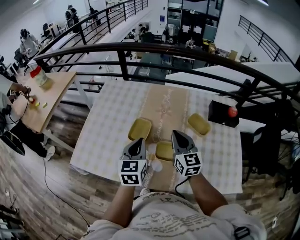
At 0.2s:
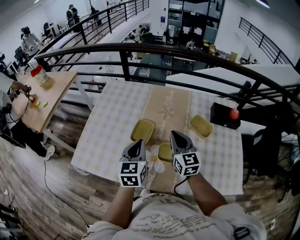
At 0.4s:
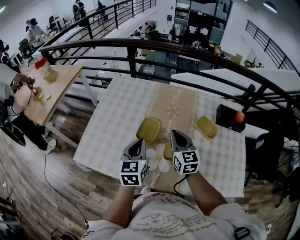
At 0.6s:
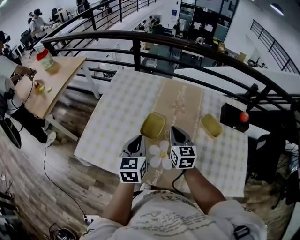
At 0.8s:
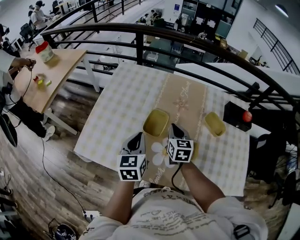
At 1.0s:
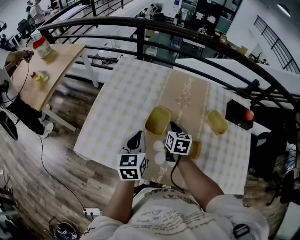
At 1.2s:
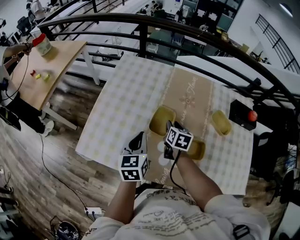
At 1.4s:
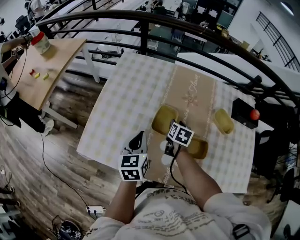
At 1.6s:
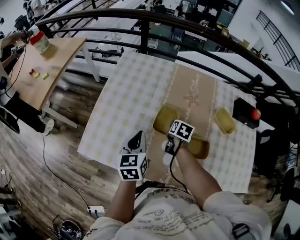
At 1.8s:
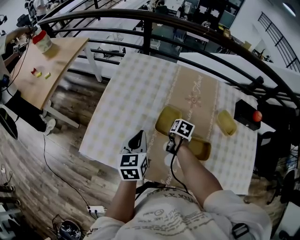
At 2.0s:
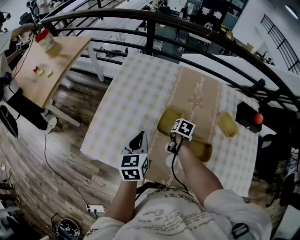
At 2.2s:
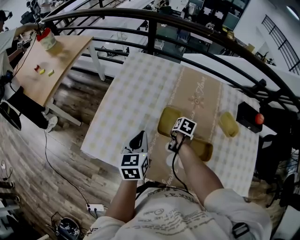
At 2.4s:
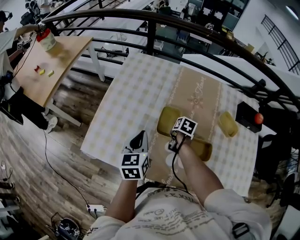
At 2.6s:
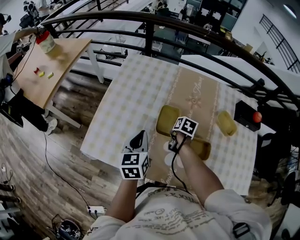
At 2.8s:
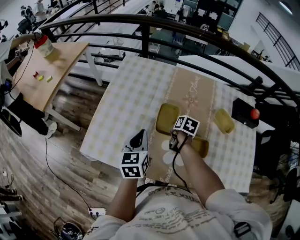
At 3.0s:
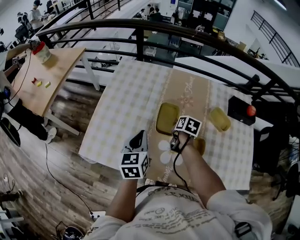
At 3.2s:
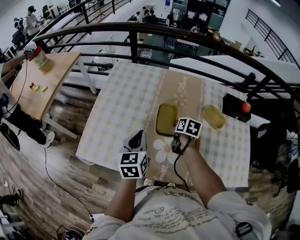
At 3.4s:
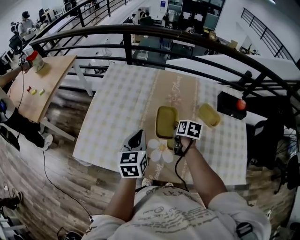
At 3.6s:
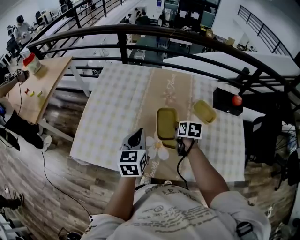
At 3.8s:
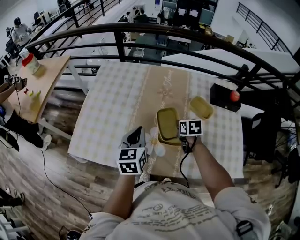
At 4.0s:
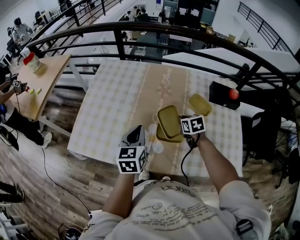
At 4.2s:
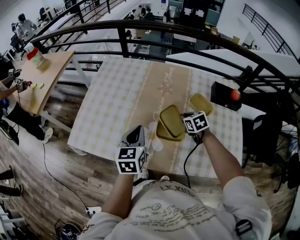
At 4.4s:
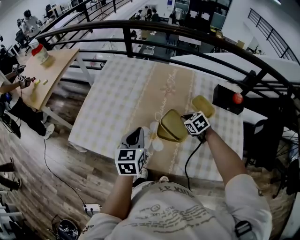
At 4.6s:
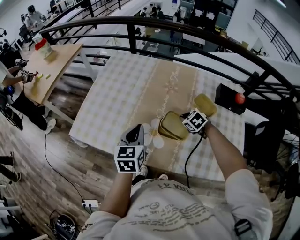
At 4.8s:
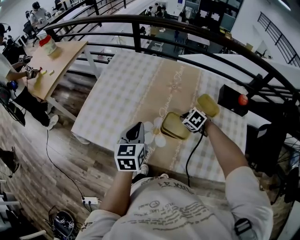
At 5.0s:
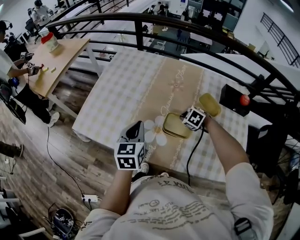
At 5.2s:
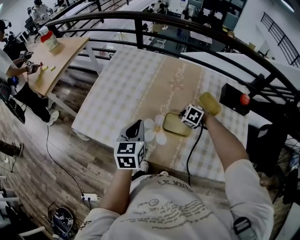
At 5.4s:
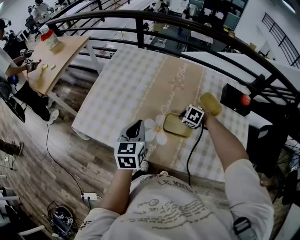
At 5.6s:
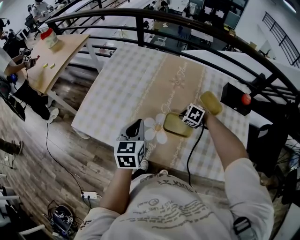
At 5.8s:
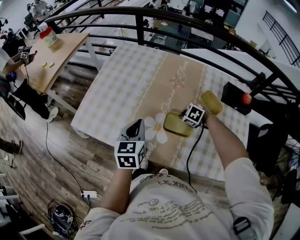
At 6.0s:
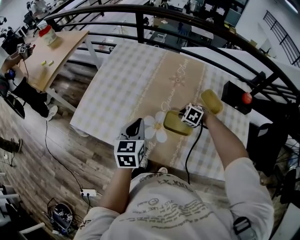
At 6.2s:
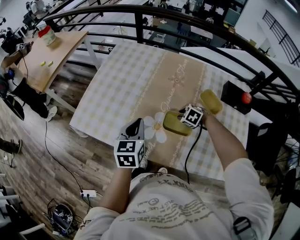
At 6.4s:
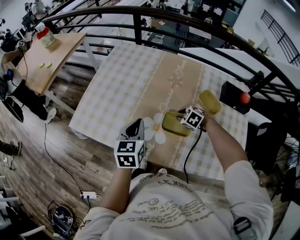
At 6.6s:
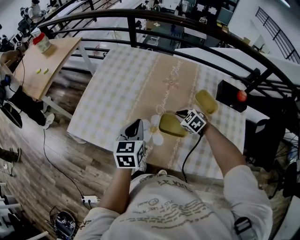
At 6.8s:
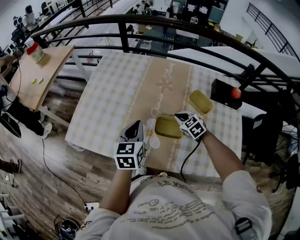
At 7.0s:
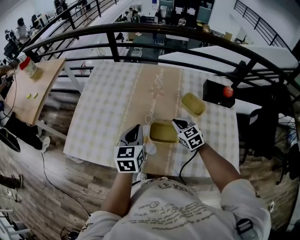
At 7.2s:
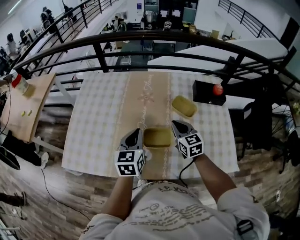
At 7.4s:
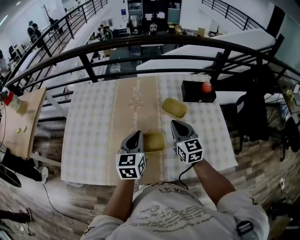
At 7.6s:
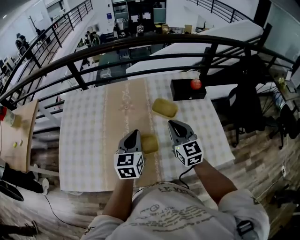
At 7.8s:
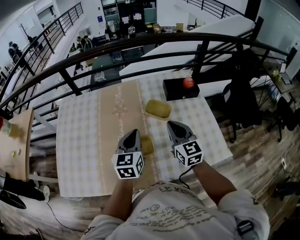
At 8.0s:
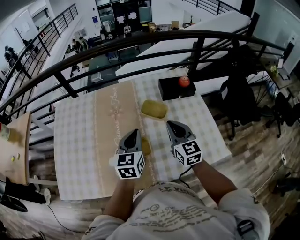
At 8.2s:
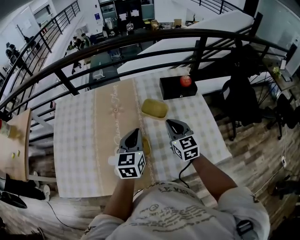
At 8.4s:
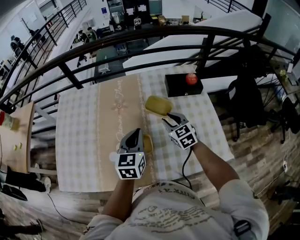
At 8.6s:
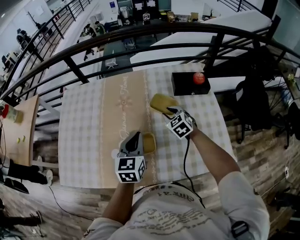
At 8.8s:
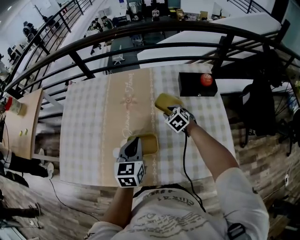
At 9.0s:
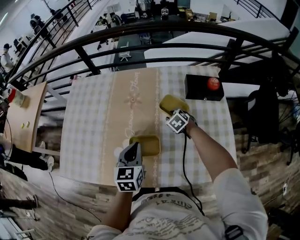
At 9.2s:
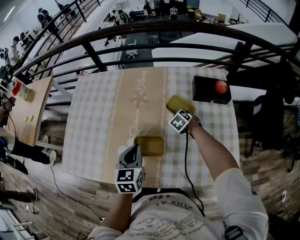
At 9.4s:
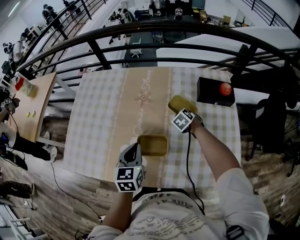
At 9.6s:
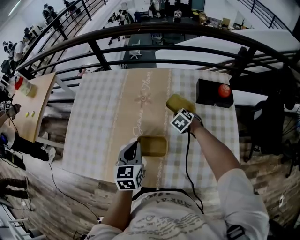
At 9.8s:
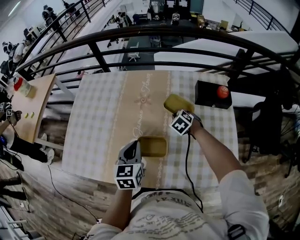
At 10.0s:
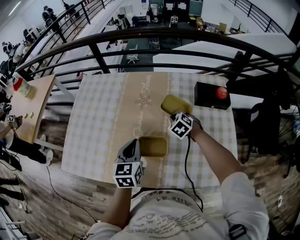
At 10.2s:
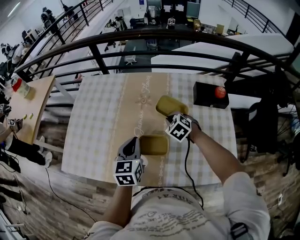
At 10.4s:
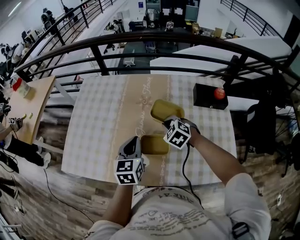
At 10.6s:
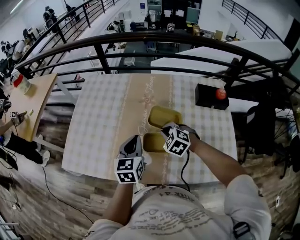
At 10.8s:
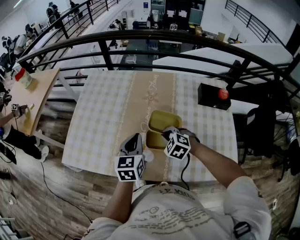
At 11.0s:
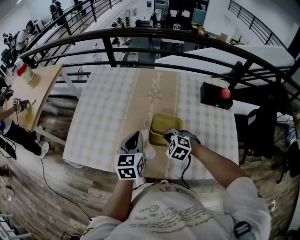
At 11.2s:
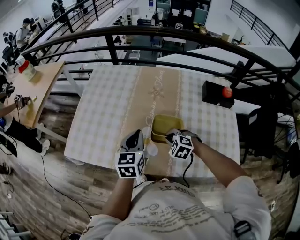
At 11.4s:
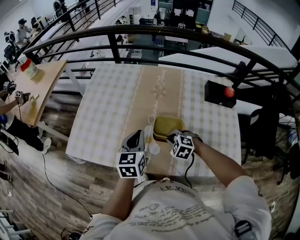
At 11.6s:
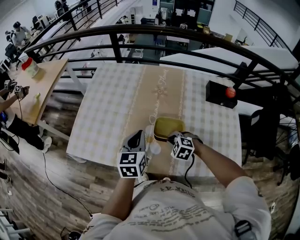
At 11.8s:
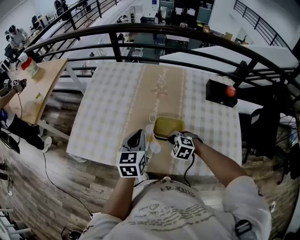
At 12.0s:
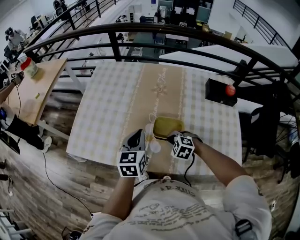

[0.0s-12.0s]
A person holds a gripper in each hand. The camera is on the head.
0.0s to 1.6s: The right gripper goes approximately 30 cm downward, forward and to the left, angles its fingers downward, by some 50 degrees, and opens. Meanwhile the left gripper travels to the left and downward by approximately 20 cm.
1.6s to 3.0s: The right gripper is displaced upward by approximately 5 cm, and closes up.
3.0s to 4.4s: Both grippers move to the right and backward, some 15 cm. The right gripper twists some 60 degrees counterclockwise, seen from behind.
4.4s to 6.0s: The right gripper shifts about 5 cm downward, and turns by roughly 30 degrees.
6.0s to 7.6s: The left gripper moves some 20 cm, and turns by about 30 degrees. Meanwhile the right gripper travels upward by some 25 cm, and angles its fingers upward, by approximately 60 degrees.
7.6s to 9.0s: The right gripper is displaced downward and forward by roughly 30 cm, tilts its fingers approximately 50 degrees downward, and opens. Meanwhile the left gripper travels downward by about 5 cm.
9.0s to 10.4s: The left gripper heads to the left, covering about 5 cm. Meanwhile the right gripper goes about 20 cm to the left, upward and backward, turns by approximately 20 degrees, and closes.
10.4s to 12.0s: The right gripper heads backward, to the left and downward, covering approximately 20 cm, while the left gripper is displaced to the left by about 10 cm.

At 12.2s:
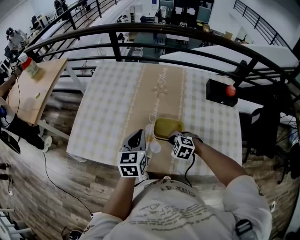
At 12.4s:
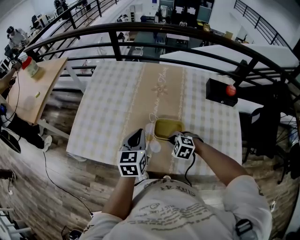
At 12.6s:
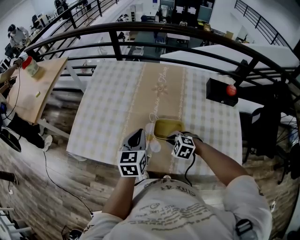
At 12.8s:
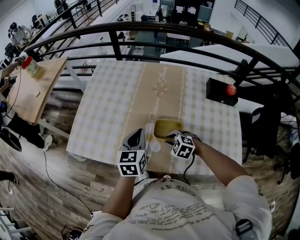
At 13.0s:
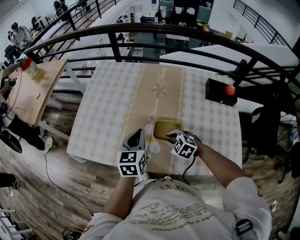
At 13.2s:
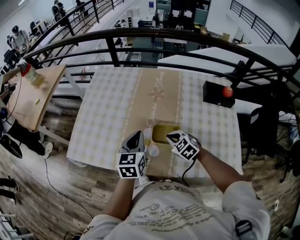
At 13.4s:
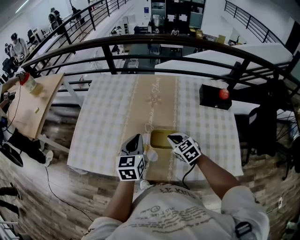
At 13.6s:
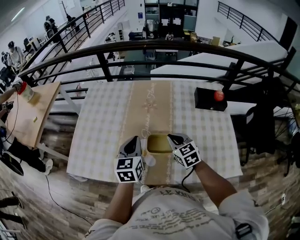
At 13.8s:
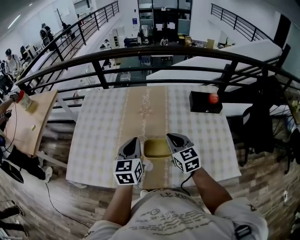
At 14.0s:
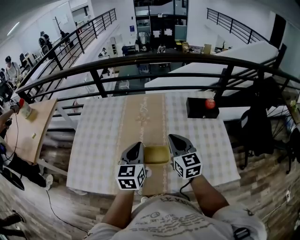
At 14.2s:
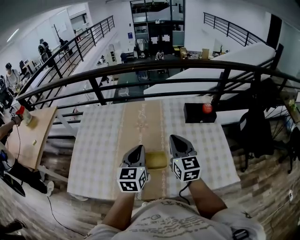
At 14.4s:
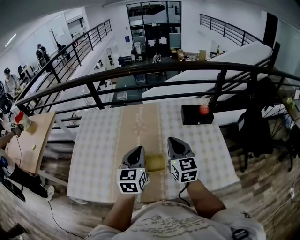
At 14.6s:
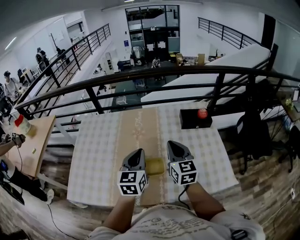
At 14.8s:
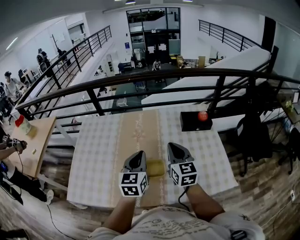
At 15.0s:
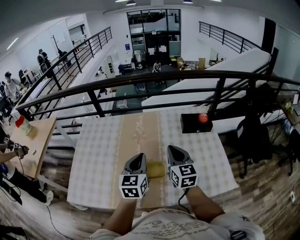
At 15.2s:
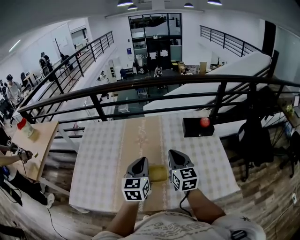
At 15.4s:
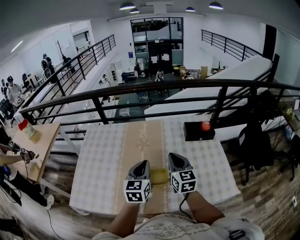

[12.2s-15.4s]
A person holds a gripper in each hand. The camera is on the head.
12.2s to 13.8s: The right gripper goes roughly 20 cm upward and to the right, and angles its fingers upward, by some 40 degrees; the left gripper heads to the right and upward, covering some 10 cm.
13.8s to 15.4s: The right gripper goes some 10 cm upward. The left gripper goes some 5 cm to the right.

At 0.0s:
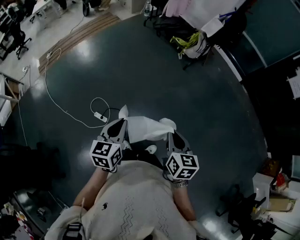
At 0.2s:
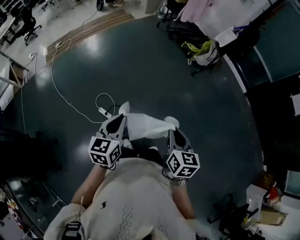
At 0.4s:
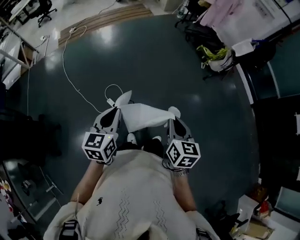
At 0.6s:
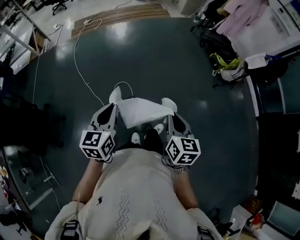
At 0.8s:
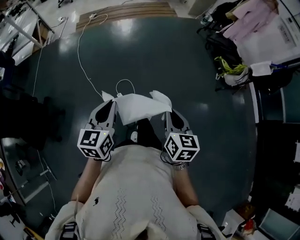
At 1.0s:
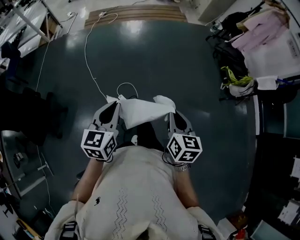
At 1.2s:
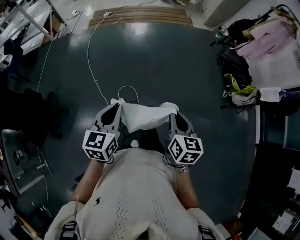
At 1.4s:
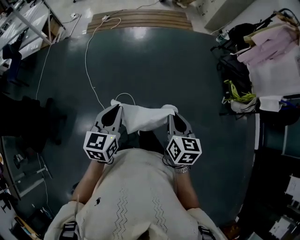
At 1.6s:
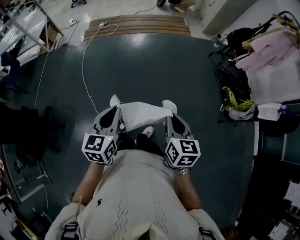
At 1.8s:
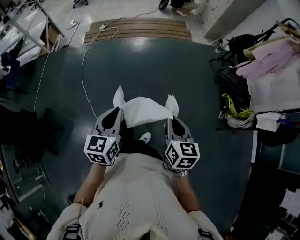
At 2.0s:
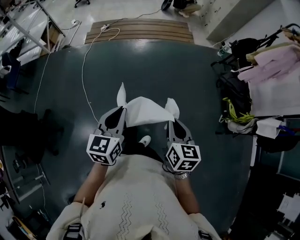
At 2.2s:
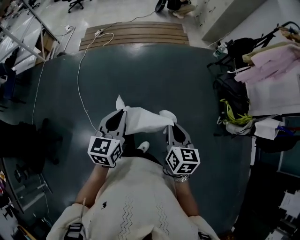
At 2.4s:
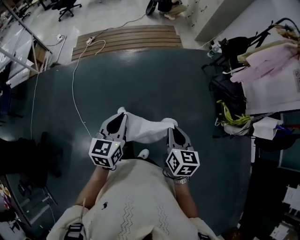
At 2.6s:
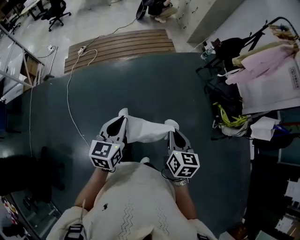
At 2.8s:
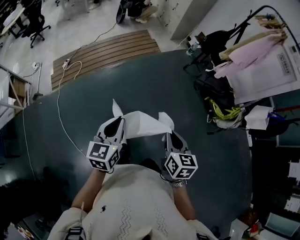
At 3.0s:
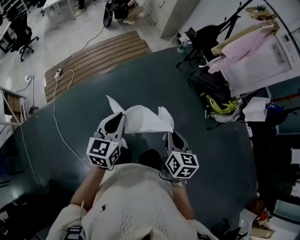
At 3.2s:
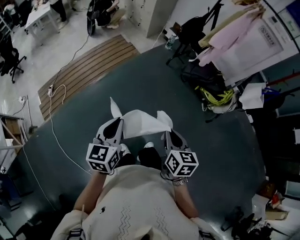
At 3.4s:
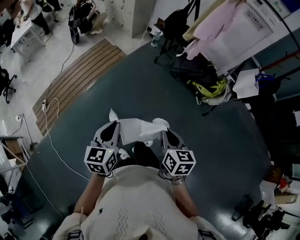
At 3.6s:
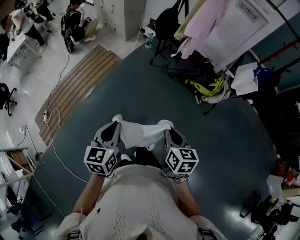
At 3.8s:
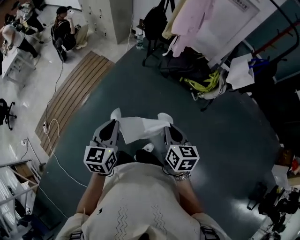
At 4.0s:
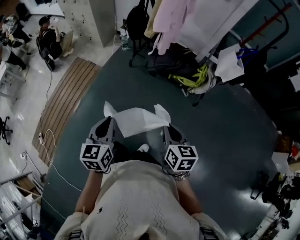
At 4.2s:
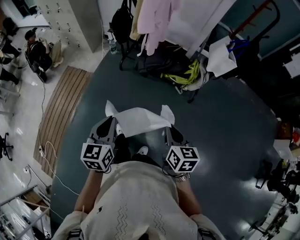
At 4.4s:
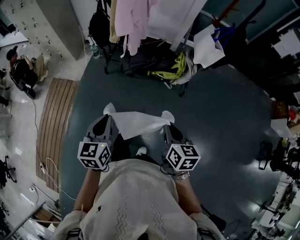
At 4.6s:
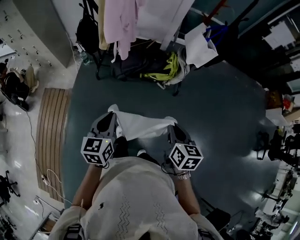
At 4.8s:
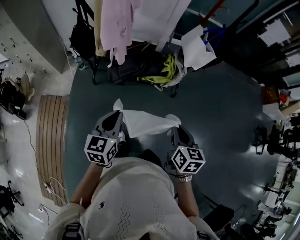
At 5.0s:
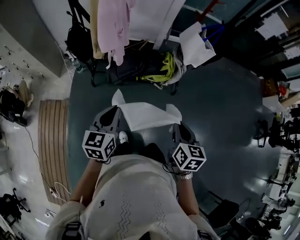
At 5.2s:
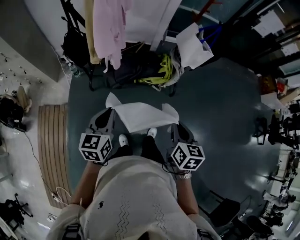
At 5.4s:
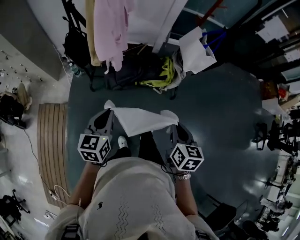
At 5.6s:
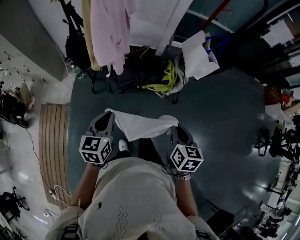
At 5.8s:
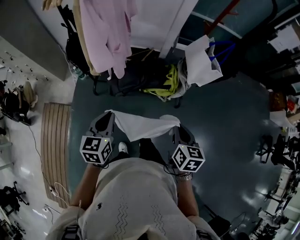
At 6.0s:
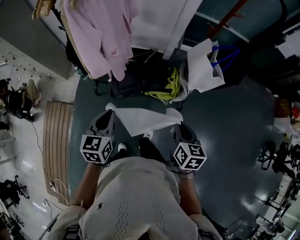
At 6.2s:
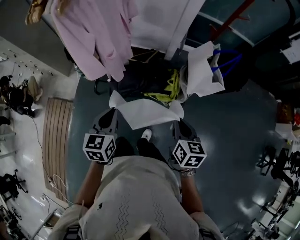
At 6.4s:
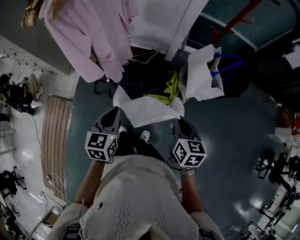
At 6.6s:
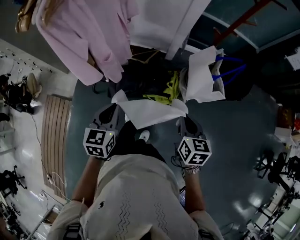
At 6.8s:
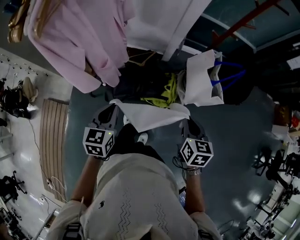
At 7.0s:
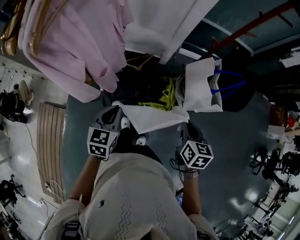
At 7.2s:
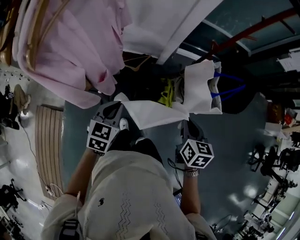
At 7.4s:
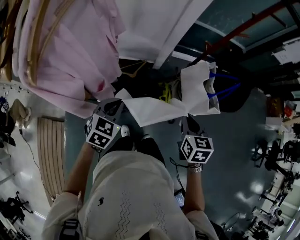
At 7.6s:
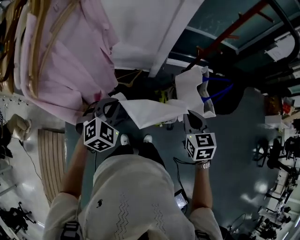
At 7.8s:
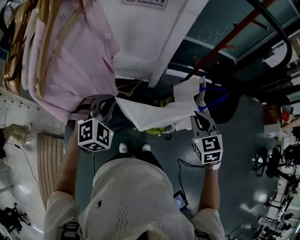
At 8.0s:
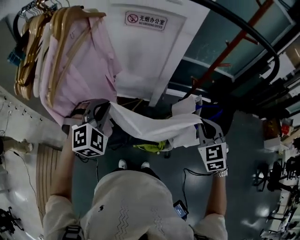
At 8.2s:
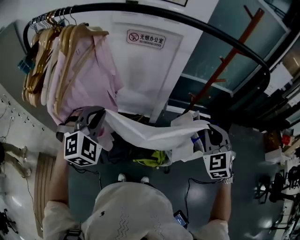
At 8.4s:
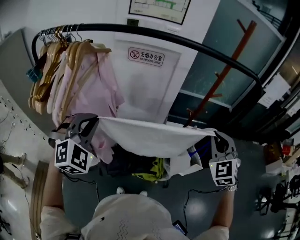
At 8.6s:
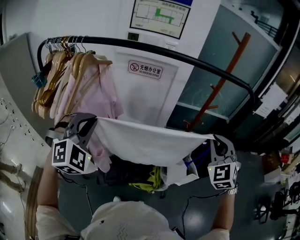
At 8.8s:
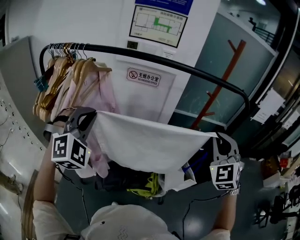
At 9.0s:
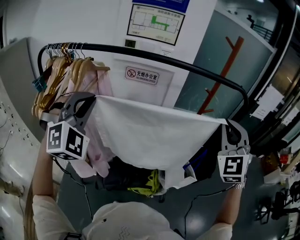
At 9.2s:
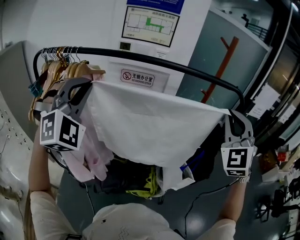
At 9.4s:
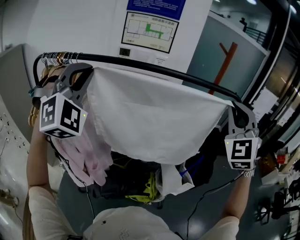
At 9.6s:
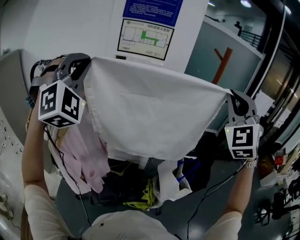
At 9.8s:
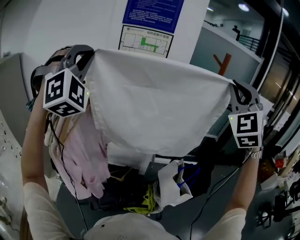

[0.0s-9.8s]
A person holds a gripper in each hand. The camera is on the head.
0.0s to 1.4s: Both grippers are carried roughly 60 cm. The left gripper rotates some 30 degrees. Meanwhile the right gripper turns by about 30 degrees.
1.4s to 2.8s: Both grippers are carried forward, about 70 cm.
2.8s to 4.2s: The two grippers travel together, about 60 cm. The right gripper swivels approximately 40 degrees; the left gripper changes its angle by some 40 degrees.
4.2s to 5.6s: The left gripper shifts by approximately 50 cm, and turns by approximately 20 degrees; the right gripper changes place by some 40 cm, and changes its angle by about 20 degrees.
5.6s to 7.0s: The pair of grippers is taken forward, roughly 50 cm.
7.0s to 8.4s: The left gripper travels upward by roughly 30 cm, and rolls clockwise, seen from behind, by roughly 60 degrees, while the right gripper shifts roughly 35 cm upward and forward, and rolls counterclockwise, seen from behind, by roughly 60 degrees.
8.4s to 9.8s: The grippers both shift upward by some 35 cm. The left gripper angles its fingers upward, by roughly 30 degrees. Meanwhile the right gripper turns by some 30 degrees.
